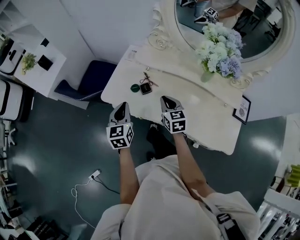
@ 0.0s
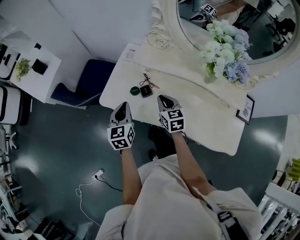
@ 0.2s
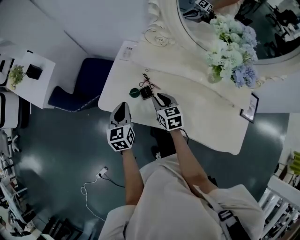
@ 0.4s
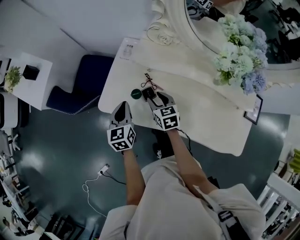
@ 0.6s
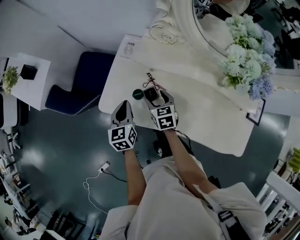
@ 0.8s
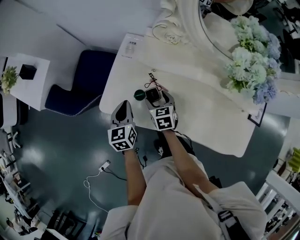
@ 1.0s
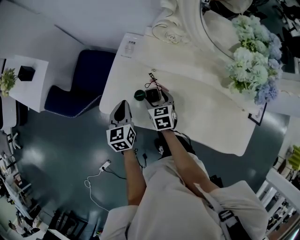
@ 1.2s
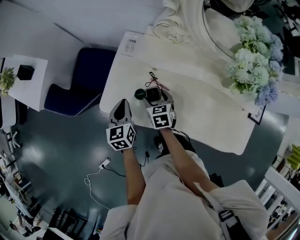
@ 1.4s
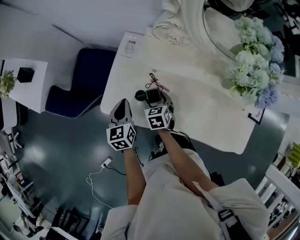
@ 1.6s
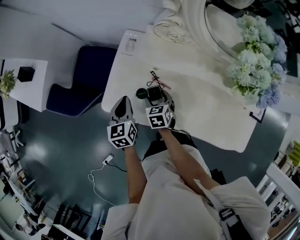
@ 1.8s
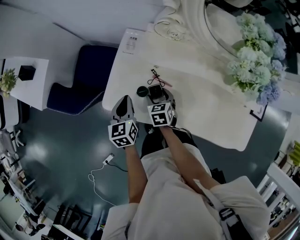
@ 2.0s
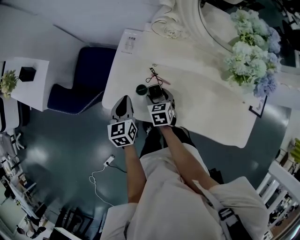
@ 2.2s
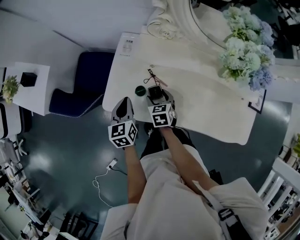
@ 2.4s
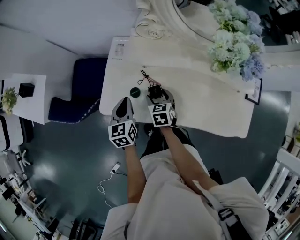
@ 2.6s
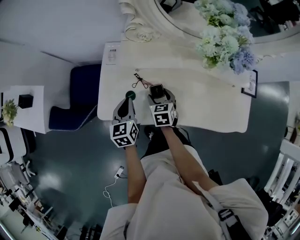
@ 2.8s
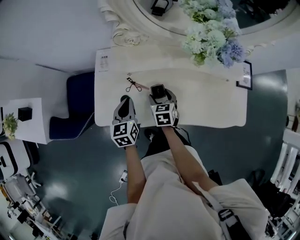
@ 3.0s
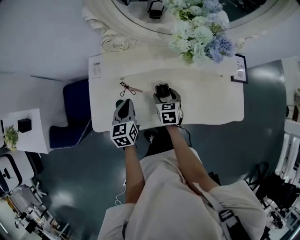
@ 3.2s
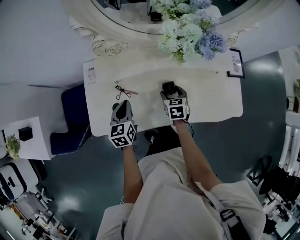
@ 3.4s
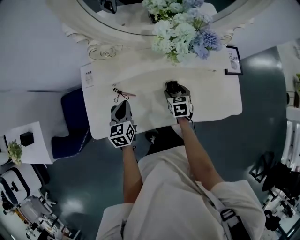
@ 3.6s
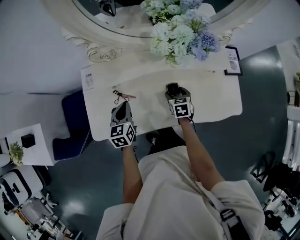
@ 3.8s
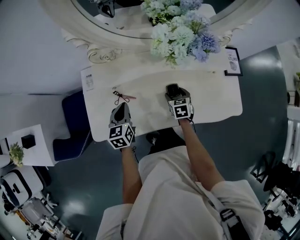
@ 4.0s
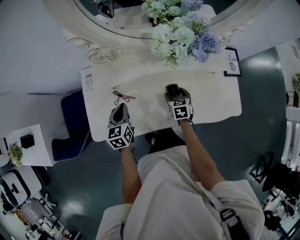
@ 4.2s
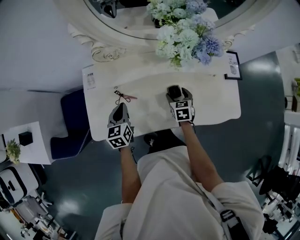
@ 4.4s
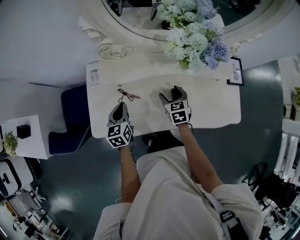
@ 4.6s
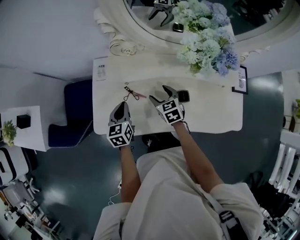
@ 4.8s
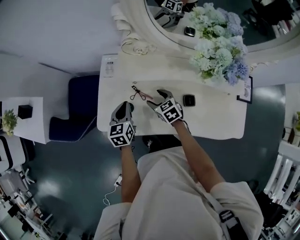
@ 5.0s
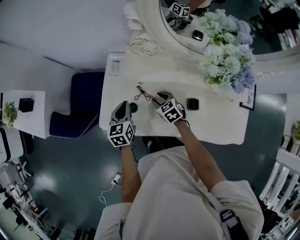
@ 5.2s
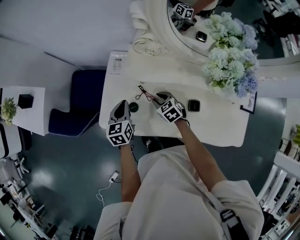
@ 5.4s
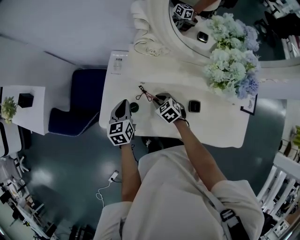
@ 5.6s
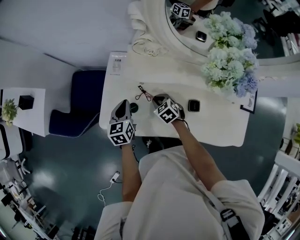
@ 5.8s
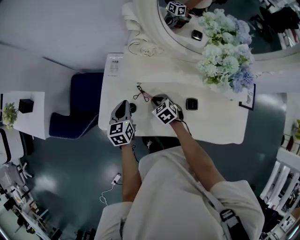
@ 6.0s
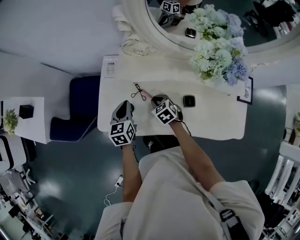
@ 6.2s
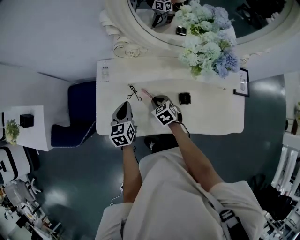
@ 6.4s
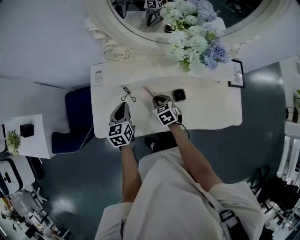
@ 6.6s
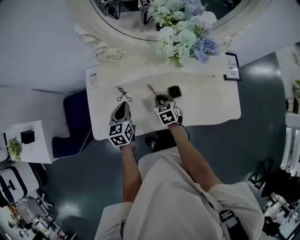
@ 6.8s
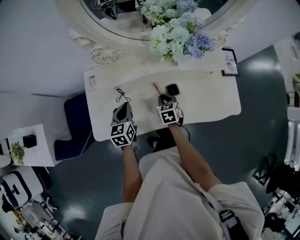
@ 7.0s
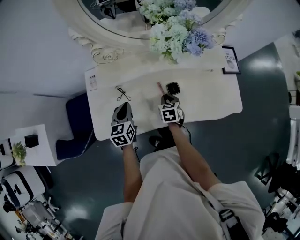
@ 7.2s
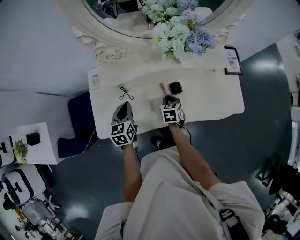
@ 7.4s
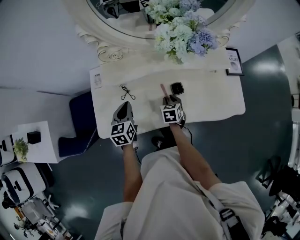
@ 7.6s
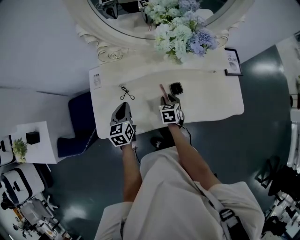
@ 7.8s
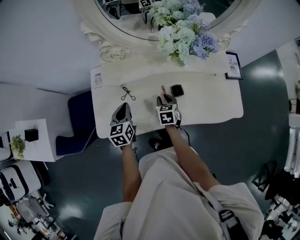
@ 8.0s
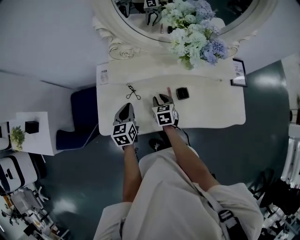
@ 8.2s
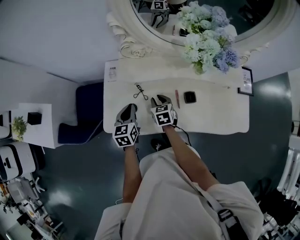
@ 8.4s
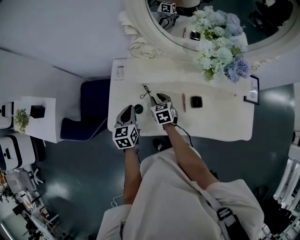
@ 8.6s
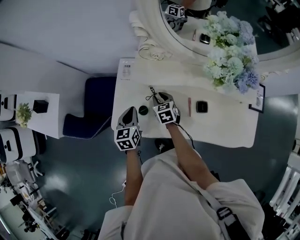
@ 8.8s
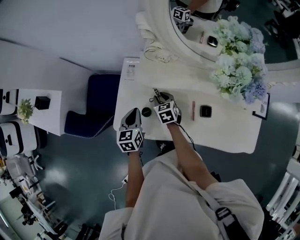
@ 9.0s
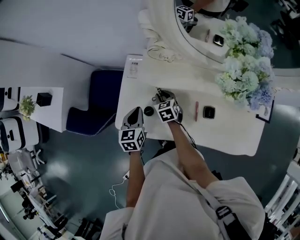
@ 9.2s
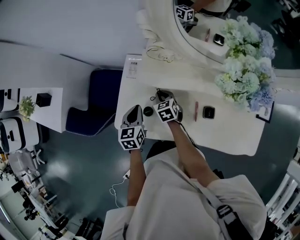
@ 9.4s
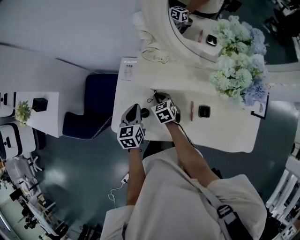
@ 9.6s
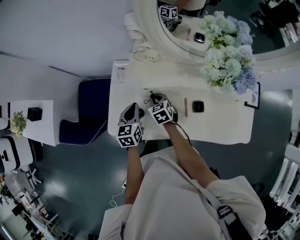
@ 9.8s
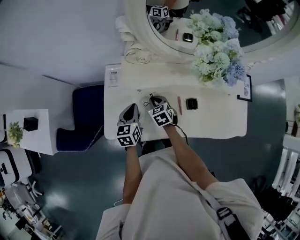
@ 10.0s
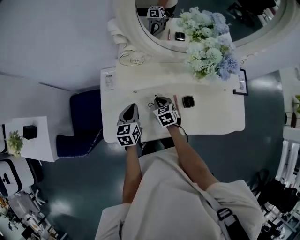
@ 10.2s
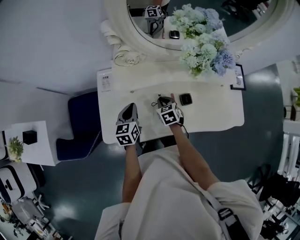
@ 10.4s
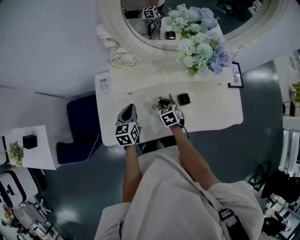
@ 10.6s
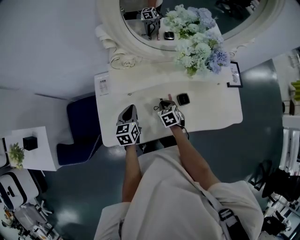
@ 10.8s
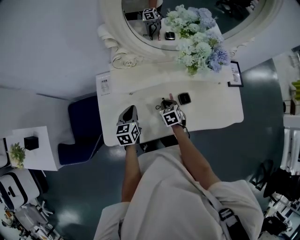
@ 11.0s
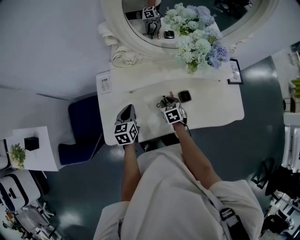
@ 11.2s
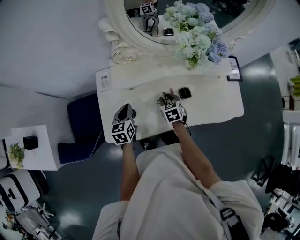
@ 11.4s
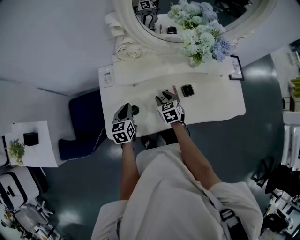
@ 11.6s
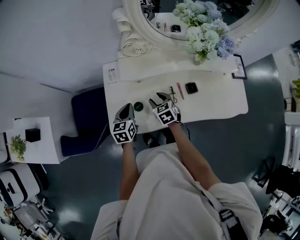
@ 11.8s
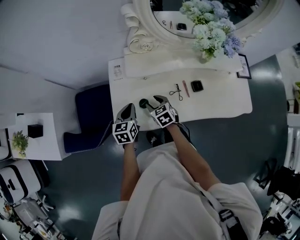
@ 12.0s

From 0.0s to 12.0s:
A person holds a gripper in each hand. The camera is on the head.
From 0.0s to 1.6s: The right gripper is displaced downward, forward and to the left by about 20 cm, turns by about 30 degrees, and opens its fingers; the left gripper goes roughly 20 cm forward and downward.
From 1.6s to 3.0s: The right gripper shifts some 15 cm to the right and upward, and turns by roughly 20 degrees. Meanwhile the left gripper is displaced to the right by roughly 10 cm.
From 3.0s to 4.4s: The right gripper shifts about 15 cm to the right. The left gripper shifts by approximately 5 cm.
From 4.4s to 6.0s: The right gripper ends up some 25 cm from where it was, changes its angle by approximately 50 degrees, and closes; the left gripper changes place by approximately 10 cm.
From 6.0s to 7.6s: The left gripper ends up approximately 10 cm from where it was; the right gripper moves about 20 cm, and changes its angle by roughly 50 degrees.
From 7.6s to 9.0s: The right gripper moves roughly 25 cm, and rotates roughly 30 degrees; the left gripper moves about 10 cm.
From 9.0s to 10.4s: The left gripper travels to the right by about 10 cm. Meanwhile the right gripper shifts approximately 15 cm to the right and backward.
From 10.4s to 12.0s: The grippers both shift to the left and backward by about 15 cm. The right gripper opens.

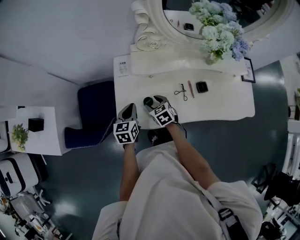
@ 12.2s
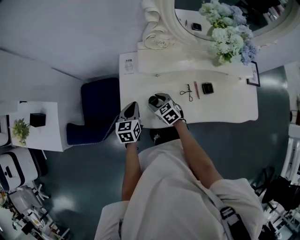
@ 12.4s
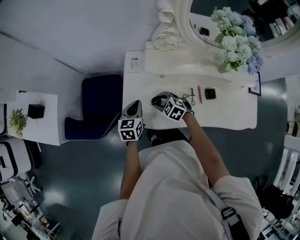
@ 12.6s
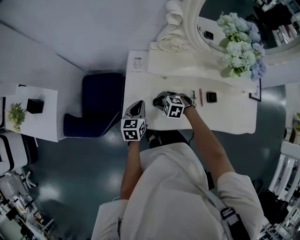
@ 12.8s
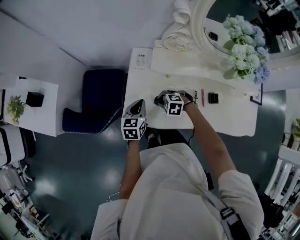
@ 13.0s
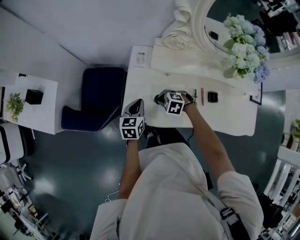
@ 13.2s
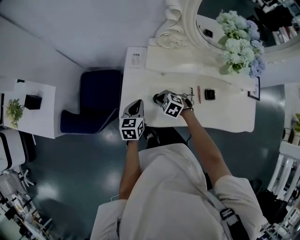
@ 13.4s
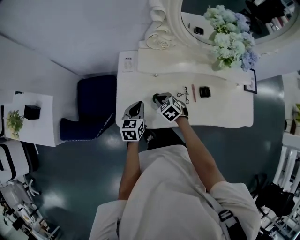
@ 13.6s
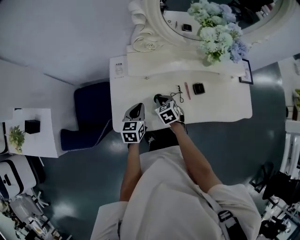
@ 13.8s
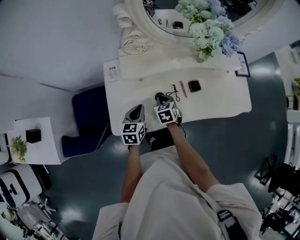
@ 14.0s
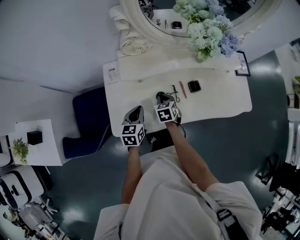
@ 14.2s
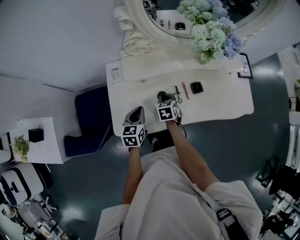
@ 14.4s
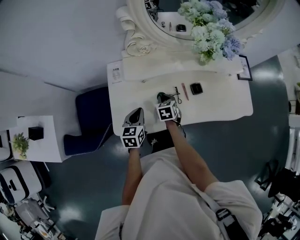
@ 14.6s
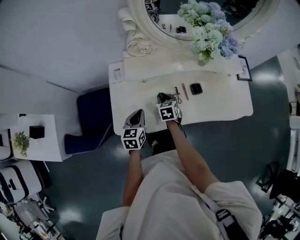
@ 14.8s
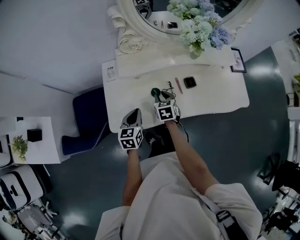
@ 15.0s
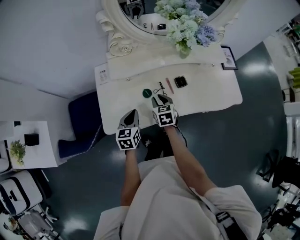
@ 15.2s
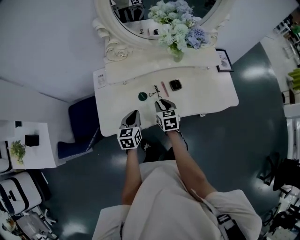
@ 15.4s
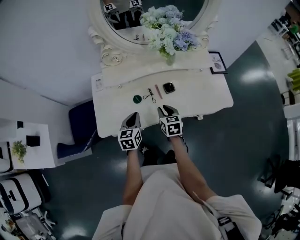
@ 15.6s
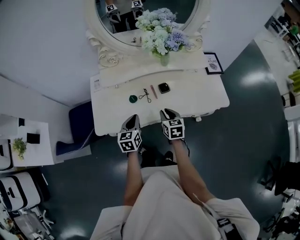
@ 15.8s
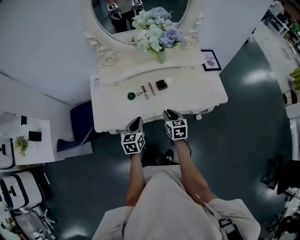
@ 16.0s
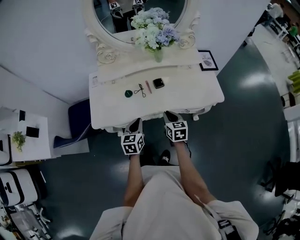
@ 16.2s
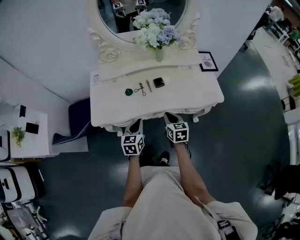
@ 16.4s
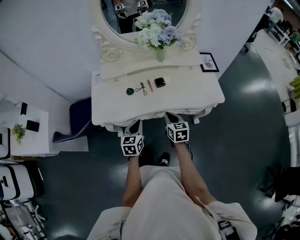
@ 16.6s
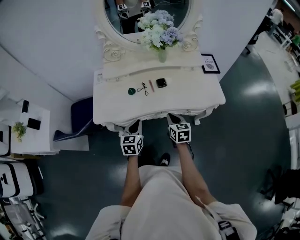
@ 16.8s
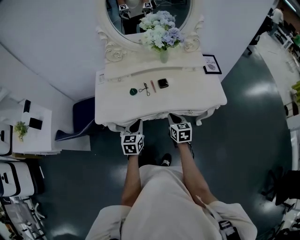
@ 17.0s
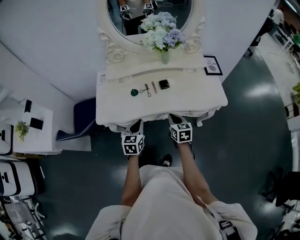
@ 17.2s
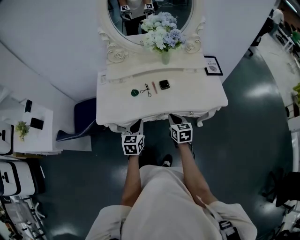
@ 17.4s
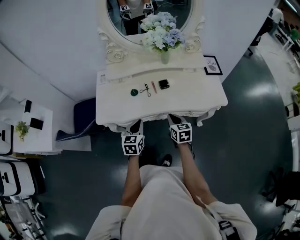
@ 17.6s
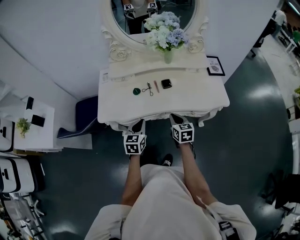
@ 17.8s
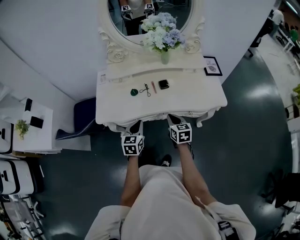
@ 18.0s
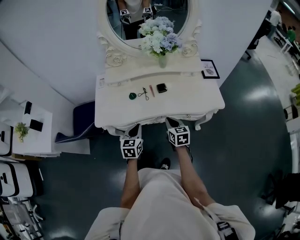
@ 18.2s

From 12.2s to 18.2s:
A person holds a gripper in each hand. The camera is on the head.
From 12.2s to 13.8s: The left gripper moves approximately 5 cm; the right gripper moves approximately 5 cm, and closes up.
From 13.8s to 15.2s: The left gripper goes about 5 cm to the right, while the right gripper travels to the right by about 10 cm, and rotates approximately 20 degrees.
From 15.2s to 16.6s: The two grippers go some 25 cm to the right and backward.
From 16.6s to 18.2s: The grippers move only a little.

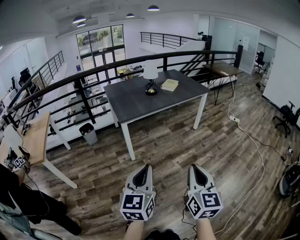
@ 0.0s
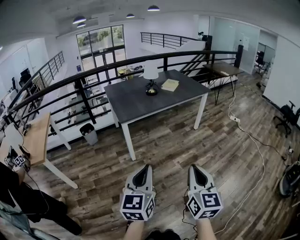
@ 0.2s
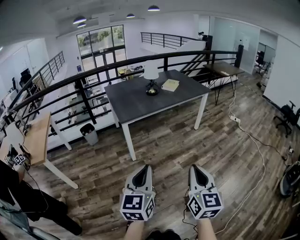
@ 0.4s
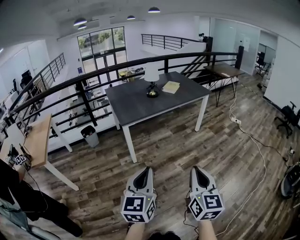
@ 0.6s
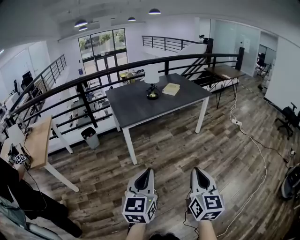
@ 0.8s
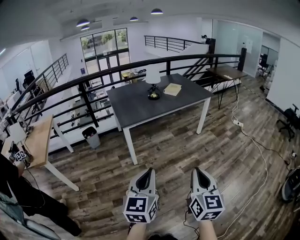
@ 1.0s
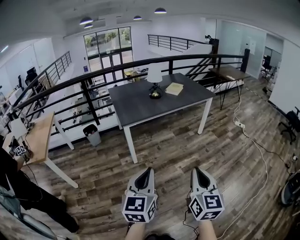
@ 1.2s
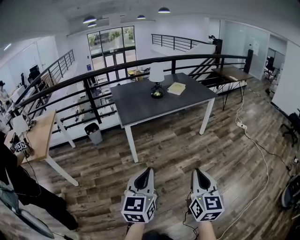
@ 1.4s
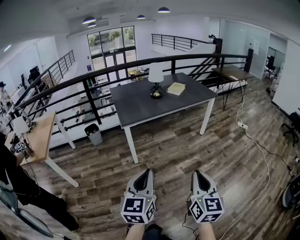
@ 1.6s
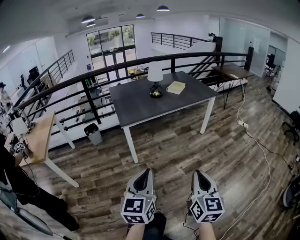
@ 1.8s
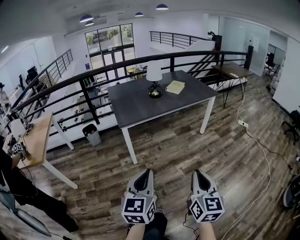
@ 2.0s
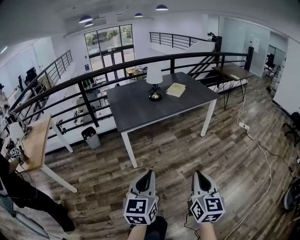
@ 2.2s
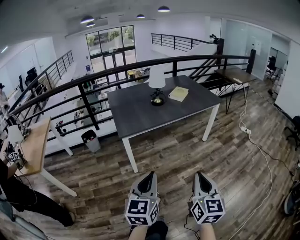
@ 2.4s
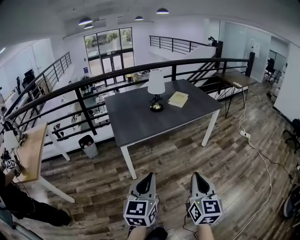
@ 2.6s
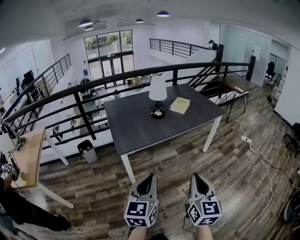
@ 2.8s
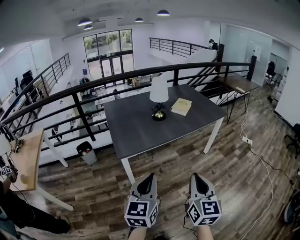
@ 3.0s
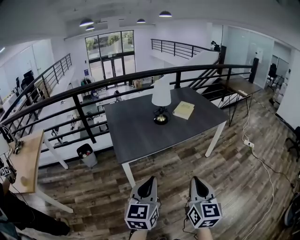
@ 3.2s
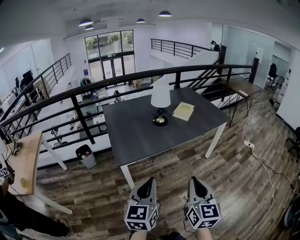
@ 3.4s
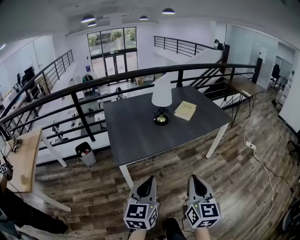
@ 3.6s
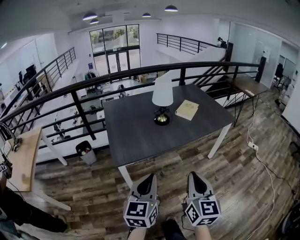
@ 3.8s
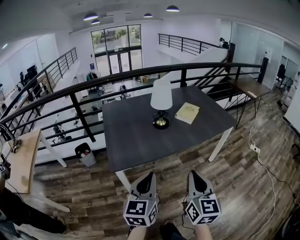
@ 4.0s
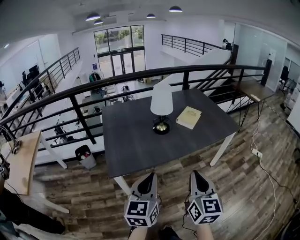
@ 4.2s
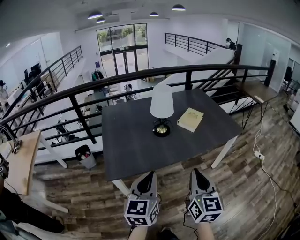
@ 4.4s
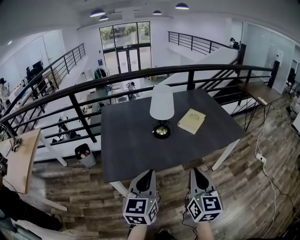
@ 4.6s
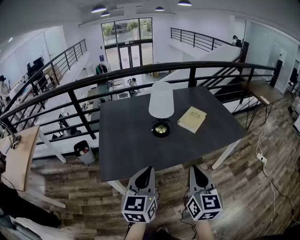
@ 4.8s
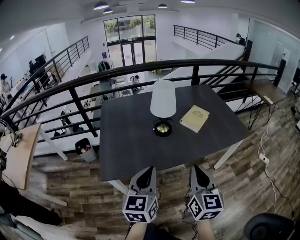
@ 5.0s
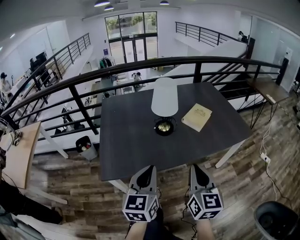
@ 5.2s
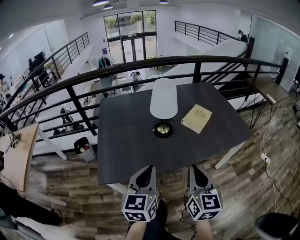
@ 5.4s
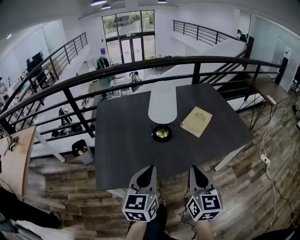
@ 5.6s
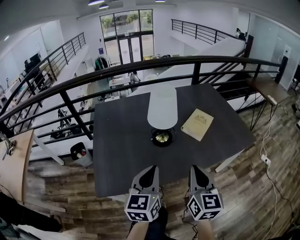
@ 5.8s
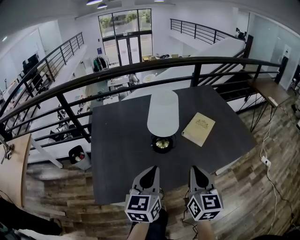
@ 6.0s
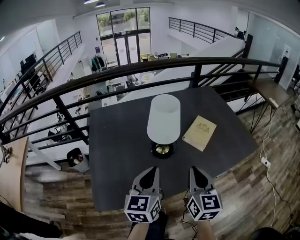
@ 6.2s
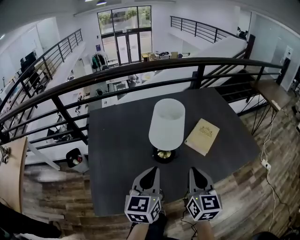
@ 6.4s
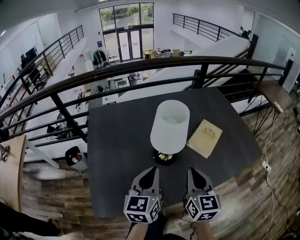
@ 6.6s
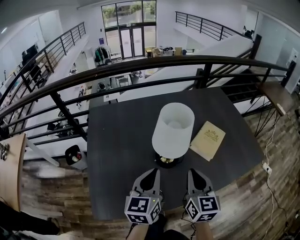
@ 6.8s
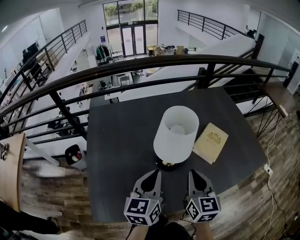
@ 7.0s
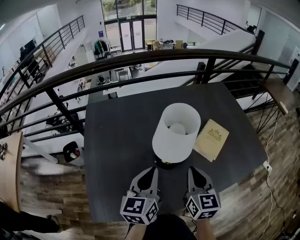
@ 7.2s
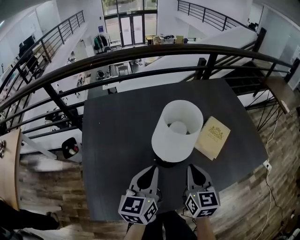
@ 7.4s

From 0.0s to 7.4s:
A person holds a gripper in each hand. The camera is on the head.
From 0.0s to 1.4s: The right gripper shifts by roughly 5 cm.
From 1.4s to 3.0s: The two grippers go approximately 30 cm forward.
From 3.0s to 4.4s: Both grippers travel together forward, roughly 25 cm.
From 4.4s to 6.0s: The grippers both shift forward by roughly 25 cm.
From 6.0s to 7.4s: The left gripper moves forward, approximately 15 cm. The right gripper goes roughly 20 cm forward and downward.
